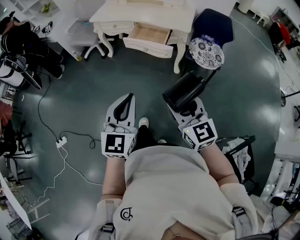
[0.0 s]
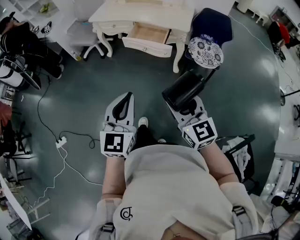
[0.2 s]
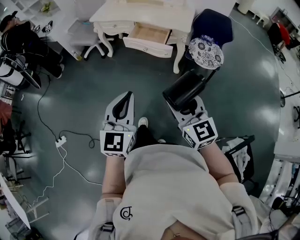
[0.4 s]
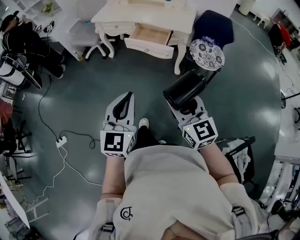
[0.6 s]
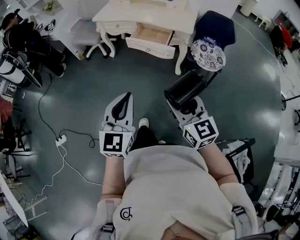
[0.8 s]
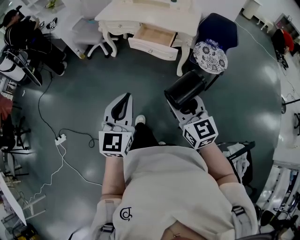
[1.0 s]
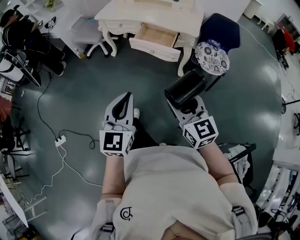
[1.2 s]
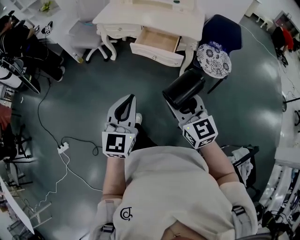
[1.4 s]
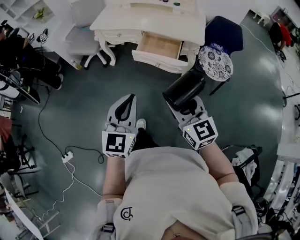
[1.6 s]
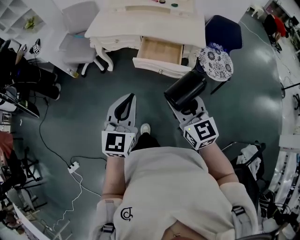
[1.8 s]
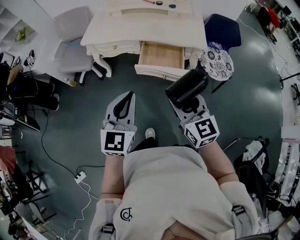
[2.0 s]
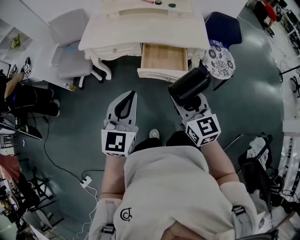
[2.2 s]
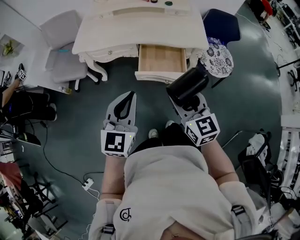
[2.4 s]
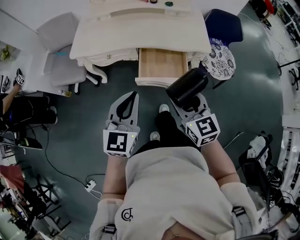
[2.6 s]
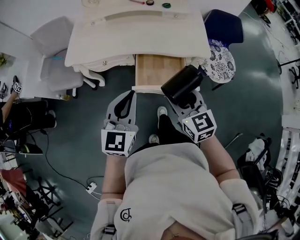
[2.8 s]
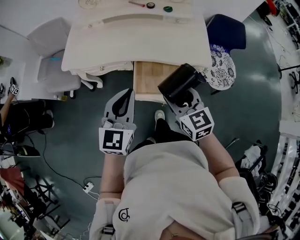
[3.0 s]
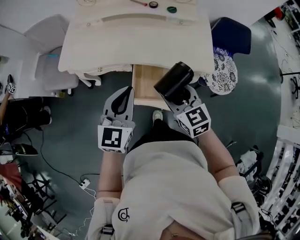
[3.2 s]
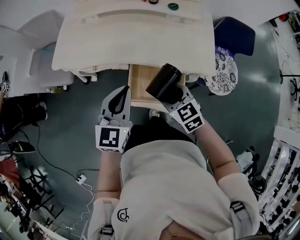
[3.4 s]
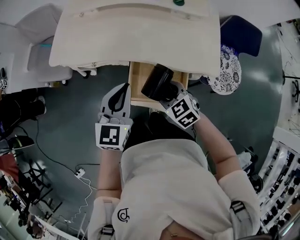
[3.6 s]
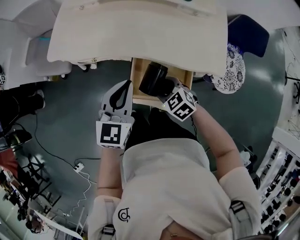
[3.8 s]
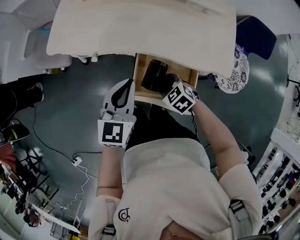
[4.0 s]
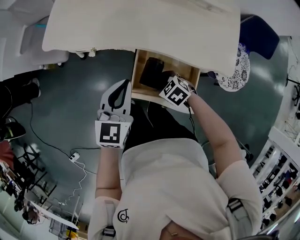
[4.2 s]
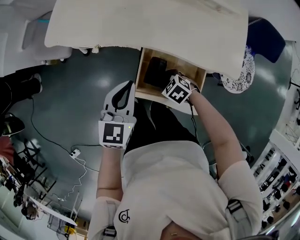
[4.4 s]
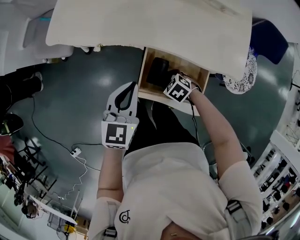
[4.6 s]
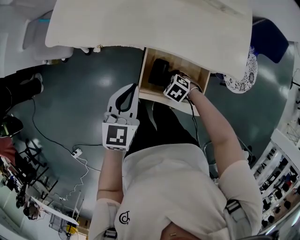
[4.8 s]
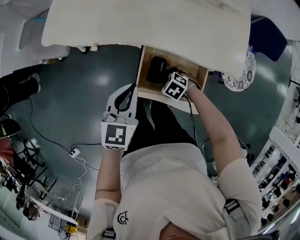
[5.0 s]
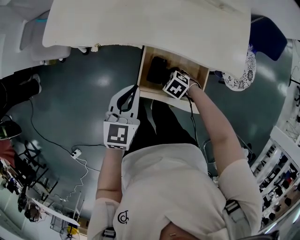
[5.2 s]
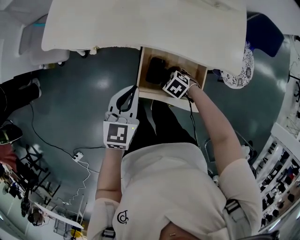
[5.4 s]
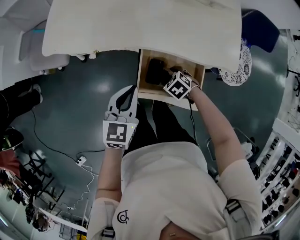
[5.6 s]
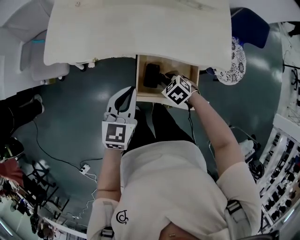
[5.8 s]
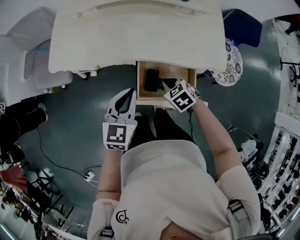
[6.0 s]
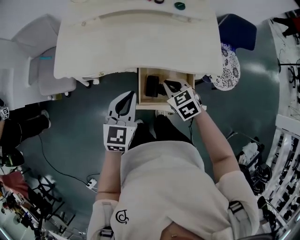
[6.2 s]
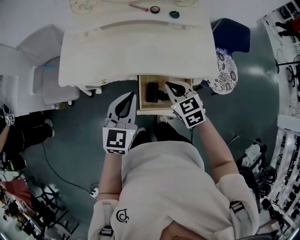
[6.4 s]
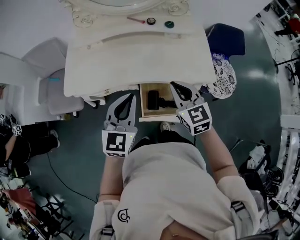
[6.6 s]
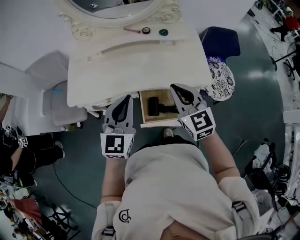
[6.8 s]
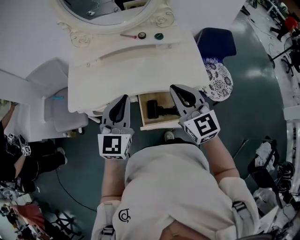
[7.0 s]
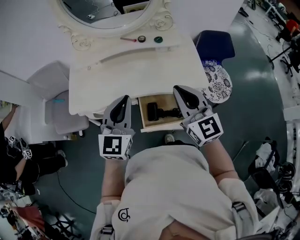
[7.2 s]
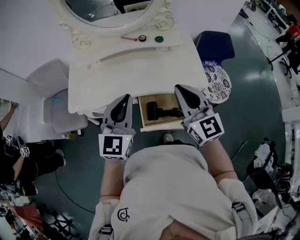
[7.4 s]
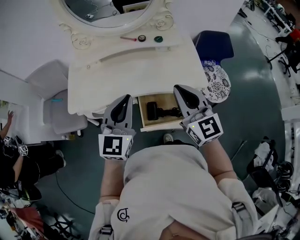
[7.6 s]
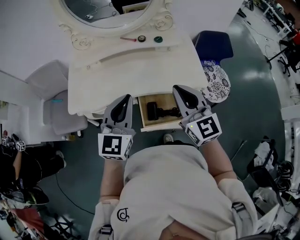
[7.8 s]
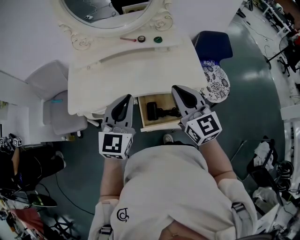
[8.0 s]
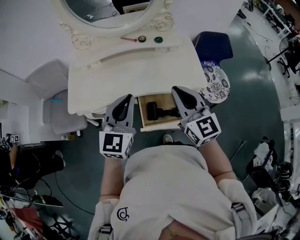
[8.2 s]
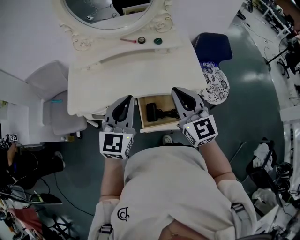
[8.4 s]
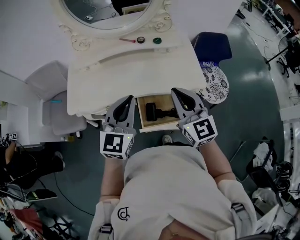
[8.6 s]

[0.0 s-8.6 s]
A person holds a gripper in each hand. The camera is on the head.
0.0 to 1.4 s: The left gripper is displaced forward by approximately 10 cm. The right gripper goes some 10 cm forward and to the left.
1.4 to 2.8 s: The two grippers go roughly 40 cm forward. The left gripper swivels roughly 20 degrees; the right gripper swivels approximately 20 degrees.
2.8 to 4.4 s: The left gripper shifts about 15 cm downward, and swivels approximately 20 degrees, while the right gripper goes approximately 35 cm downward, and points its fingers about 50 degrees further downward.
4.4 to 5.8 s: The right gripper opens and closes again.
5.8 to 7.2 s: The right gripper moves upward, roughly 40 cm, tilts its fingers roughly 70 degrees upward, and closes up; the left gripper moves upward, roughly 20 cm, and swivels roughly 30 degrees.
7.2 to 8.6 s: There are only small adjustments of the grippers.

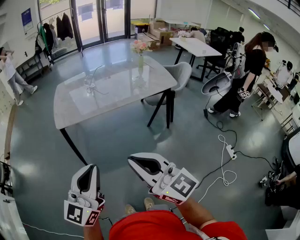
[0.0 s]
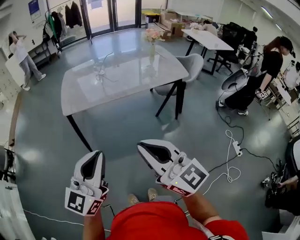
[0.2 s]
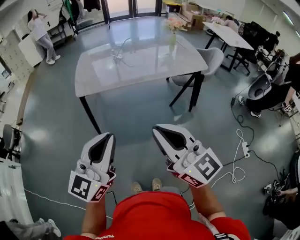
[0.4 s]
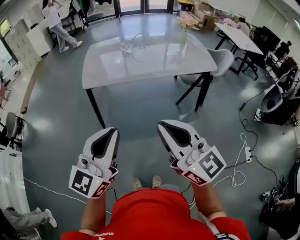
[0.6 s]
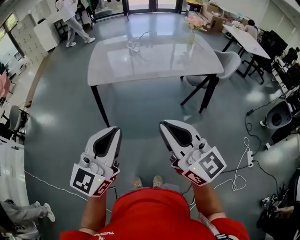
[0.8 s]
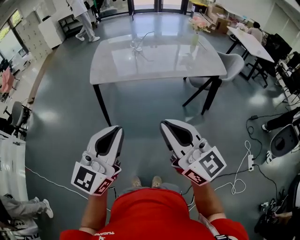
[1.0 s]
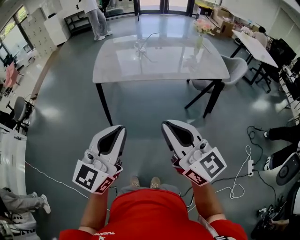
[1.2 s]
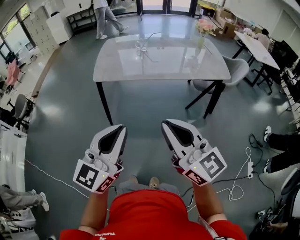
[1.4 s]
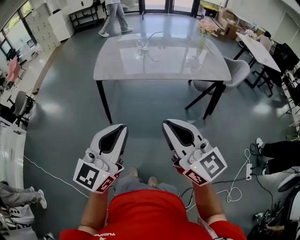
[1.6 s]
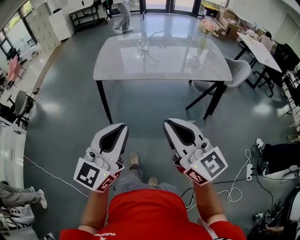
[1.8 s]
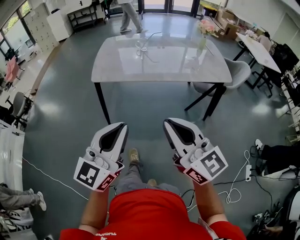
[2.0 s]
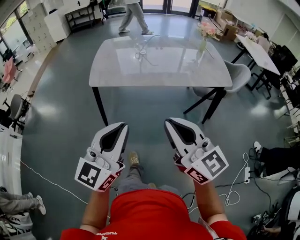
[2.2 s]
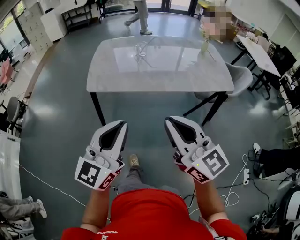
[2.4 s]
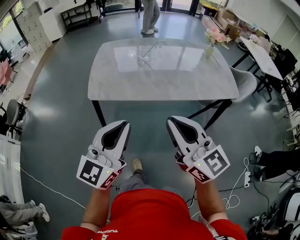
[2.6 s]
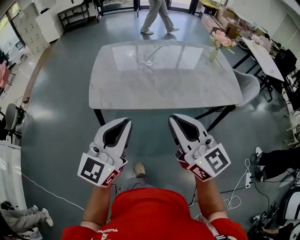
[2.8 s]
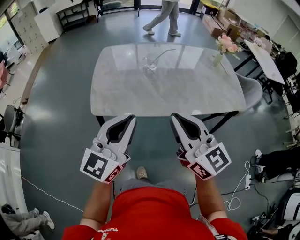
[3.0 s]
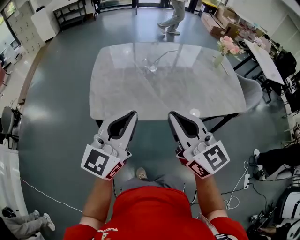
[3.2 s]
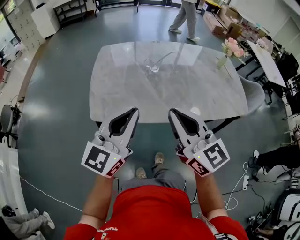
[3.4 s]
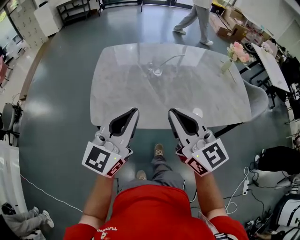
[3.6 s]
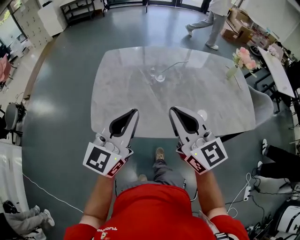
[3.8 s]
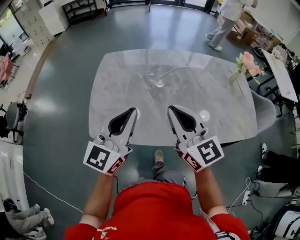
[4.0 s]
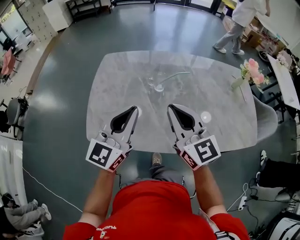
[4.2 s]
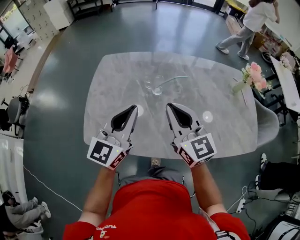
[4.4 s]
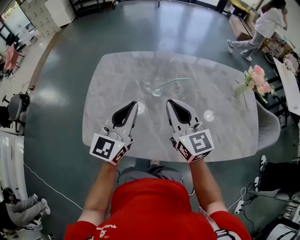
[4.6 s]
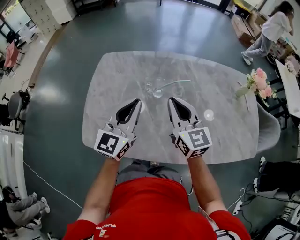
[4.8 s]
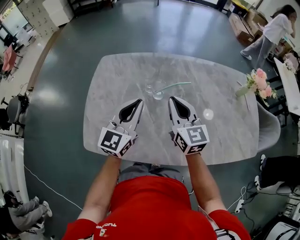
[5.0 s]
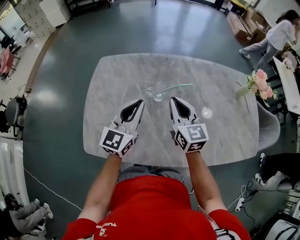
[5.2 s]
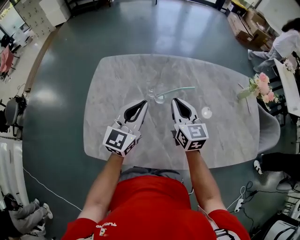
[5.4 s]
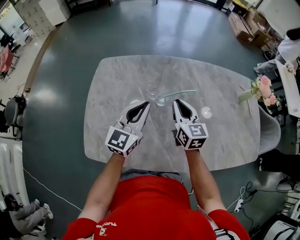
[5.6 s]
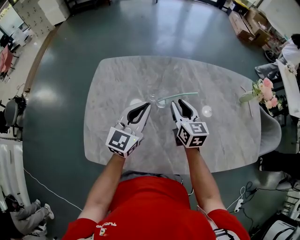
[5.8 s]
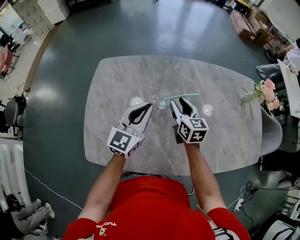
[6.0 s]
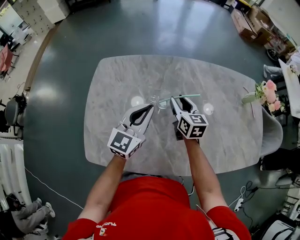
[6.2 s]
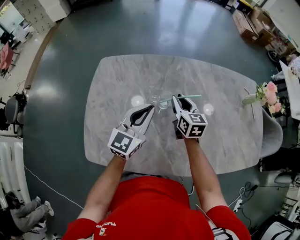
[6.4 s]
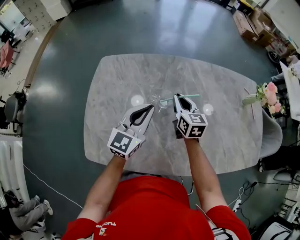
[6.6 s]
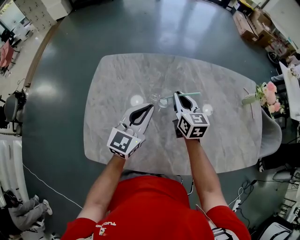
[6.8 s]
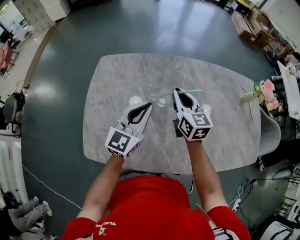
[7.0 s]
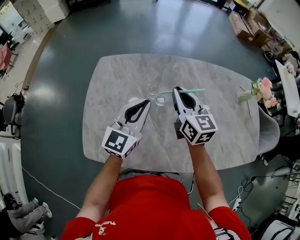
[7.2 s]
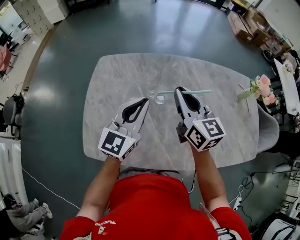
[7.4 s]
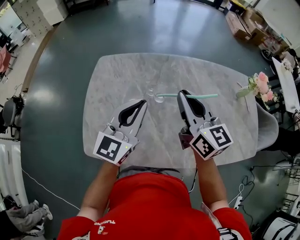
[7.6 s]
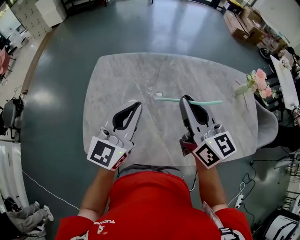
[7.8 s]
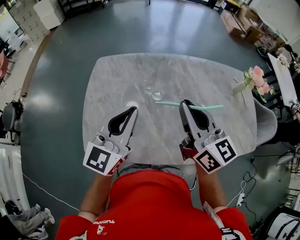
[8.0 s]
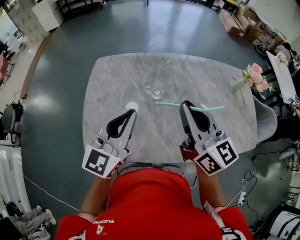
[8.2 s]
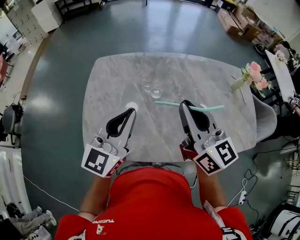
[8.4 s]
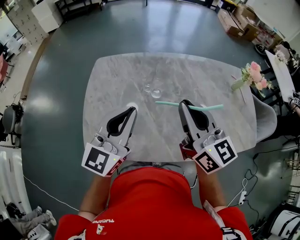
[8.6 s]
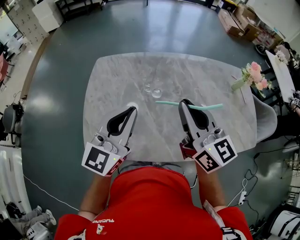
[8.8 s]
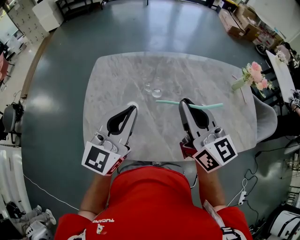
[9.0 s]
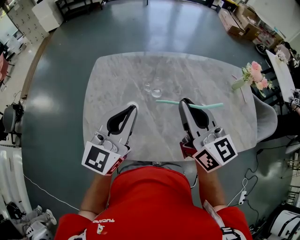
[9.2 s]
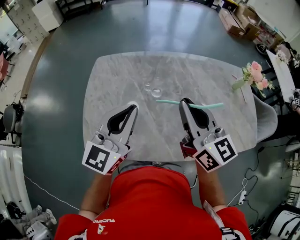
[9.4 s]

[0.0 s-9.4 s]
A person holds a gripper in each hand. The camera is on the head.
0.0 to 1.6 s: The right gripper moves forward, approximately 5 cm.
1.6 to 3.2 s: Both grippers move forward, some 40 cm.
3.2 to 4.8 s: Both grippers travel together forward, approximately 30 cm.
4.8 to 6.2 s: The right gripper heads downward and forward, covering approximately 20 cm, rotates some 20 degrees, and opens; the left gripper heads forward and downward, covering about 10 cm.
6.2 to 7.8 s: The right gripper is displaced upward and backward by roughly 25 cm, rotates about 20 degrees, and closes, while the left gripper moves upward and backward, roughly 15 cm.
7.8 to 9.4 s: There are only small adjustments of the grippers.

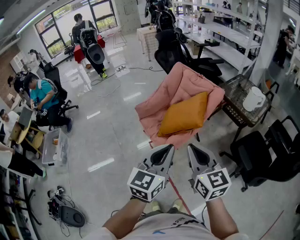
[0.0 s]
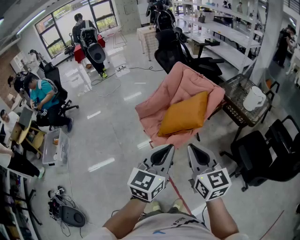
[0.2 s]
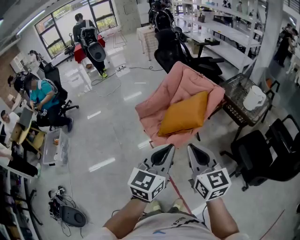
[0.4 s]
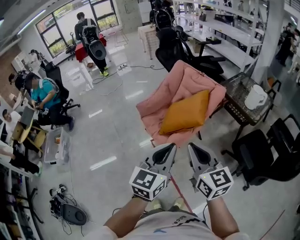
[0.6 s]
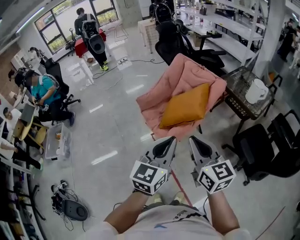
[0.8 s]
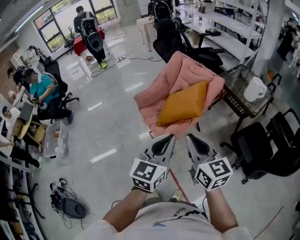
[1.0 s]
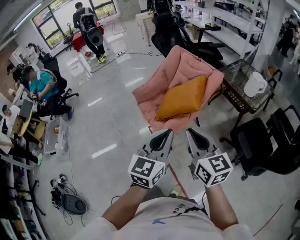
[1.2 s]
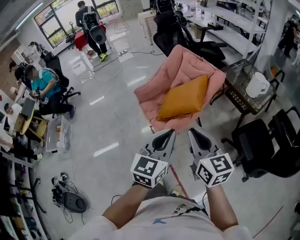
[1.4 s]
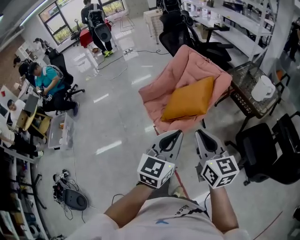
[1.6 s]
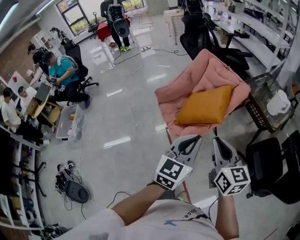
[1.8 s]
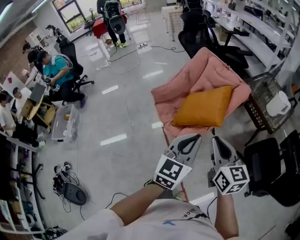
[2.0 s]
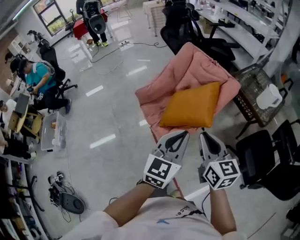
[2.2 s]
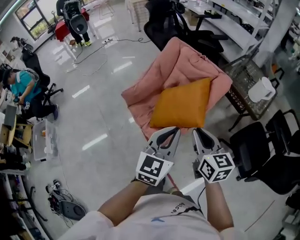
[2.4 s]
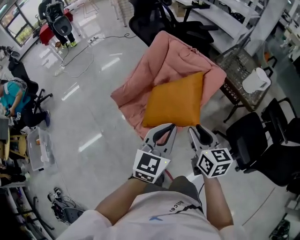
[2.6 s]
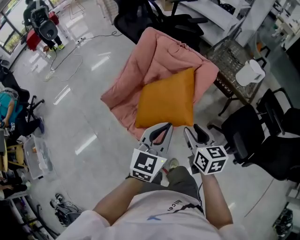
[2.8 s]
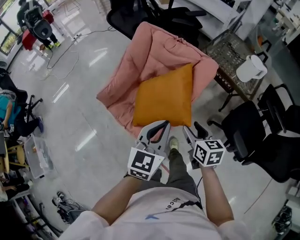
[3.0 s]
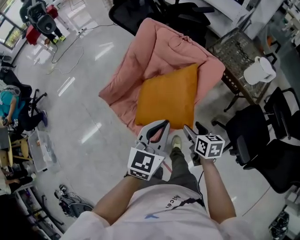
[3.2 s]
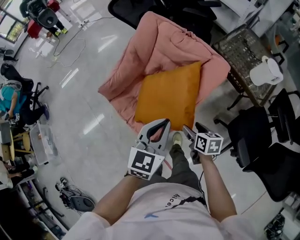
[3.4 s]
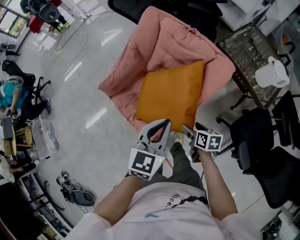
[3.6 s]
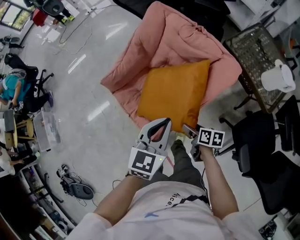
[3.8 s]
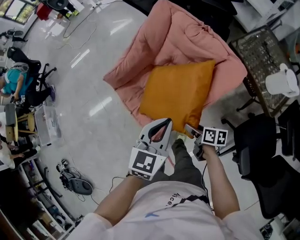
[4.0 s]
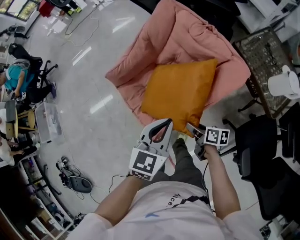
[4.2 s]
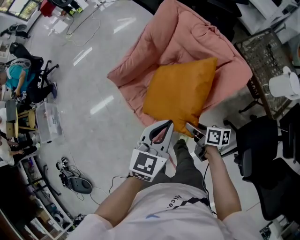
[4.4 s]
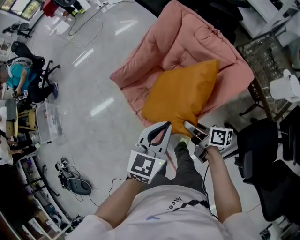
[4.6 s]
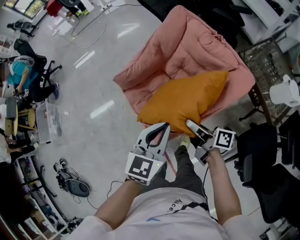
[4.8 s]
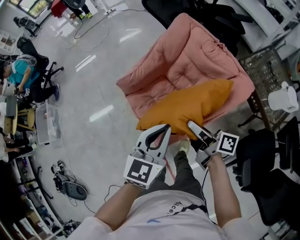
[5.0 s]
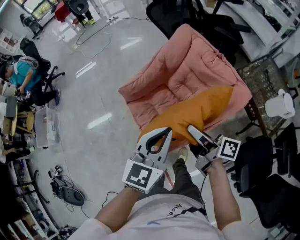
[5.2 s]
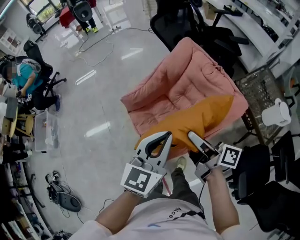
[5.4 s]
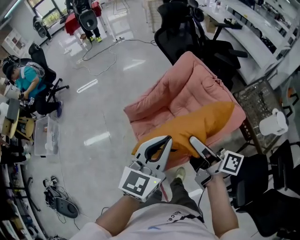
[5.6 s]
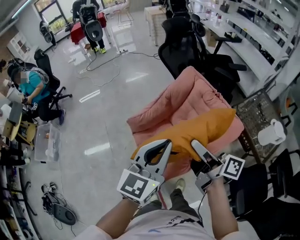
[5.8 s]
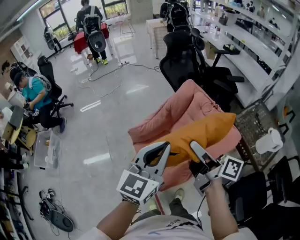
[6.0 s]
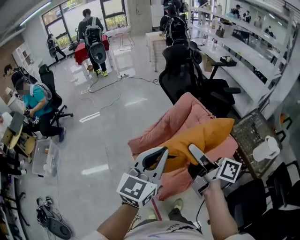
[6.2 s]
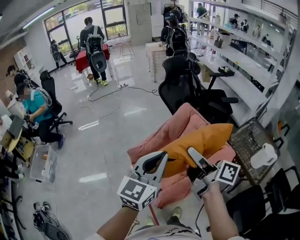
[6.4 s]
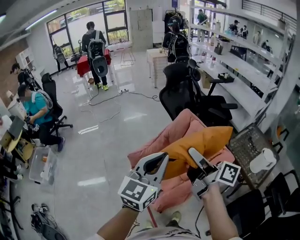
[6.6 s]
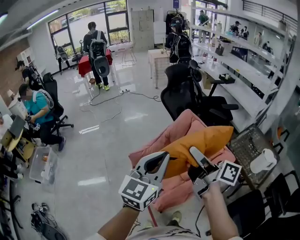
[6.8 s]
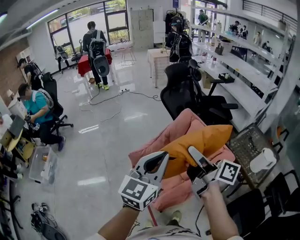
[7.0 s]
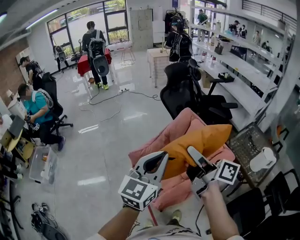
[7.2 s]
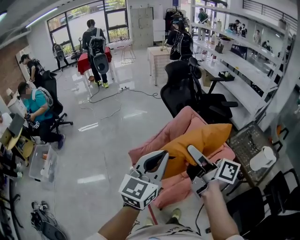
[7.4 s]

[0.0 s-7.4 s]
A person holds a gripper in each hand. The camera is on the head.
0.0 to 1.4 s: The left gripper moves to the right, about 5 cm. Meanwhile the right gripper changes place by about 5 cm.
1.4 to 3.0 s: The right gripper shifts some 40 cm forward and downward, changes its angle by approximately 30 degrees, and opens up; the left gripper is displaced forward by some 30 cm.
3.0 to 4.4 s: The left gripper goes some 10 cm downward. The right gripper moves downward, roughly 15 cm, swivels roughly 50 degrees, and opens and closes again.
4.4 to 6.0 s: The left gripper travels upward and to the left by roughly 30 cm, and rotates approximately 20 degrees, while the right gripper shifts roughly 40 cm upward, and angles its fingers upward, by some 40 degrees.
6.0 to 7.4 s: The right gripper heads upward, covering roughly 10 cm; the left gripper moves some 5 cm.
